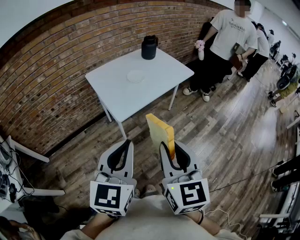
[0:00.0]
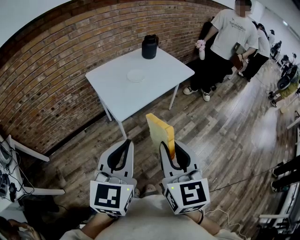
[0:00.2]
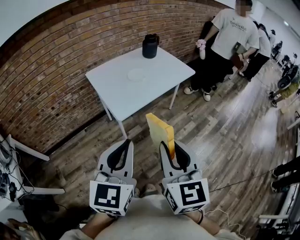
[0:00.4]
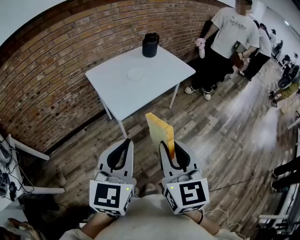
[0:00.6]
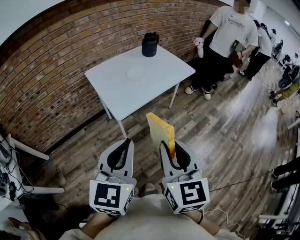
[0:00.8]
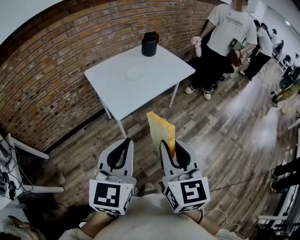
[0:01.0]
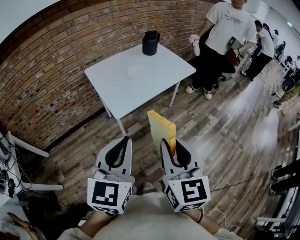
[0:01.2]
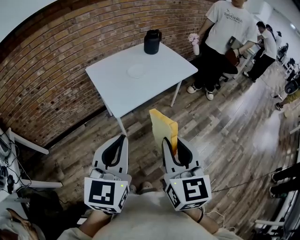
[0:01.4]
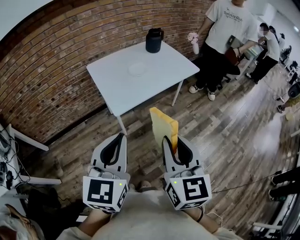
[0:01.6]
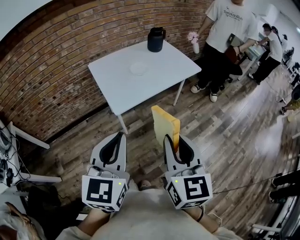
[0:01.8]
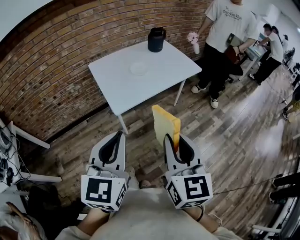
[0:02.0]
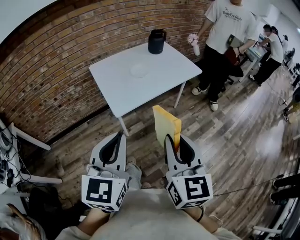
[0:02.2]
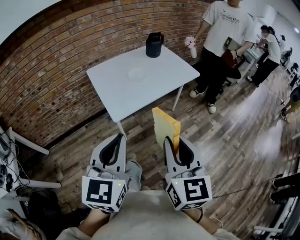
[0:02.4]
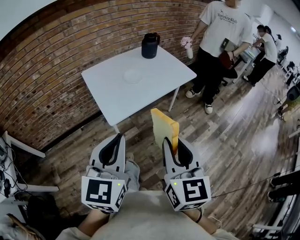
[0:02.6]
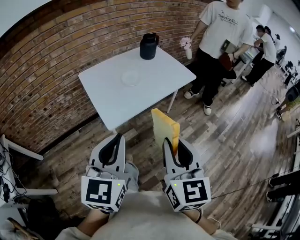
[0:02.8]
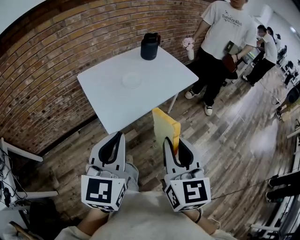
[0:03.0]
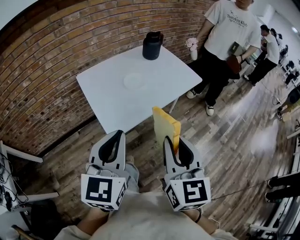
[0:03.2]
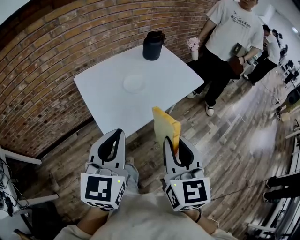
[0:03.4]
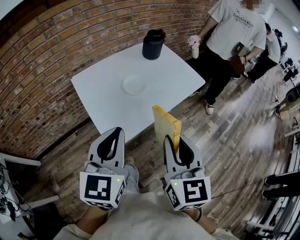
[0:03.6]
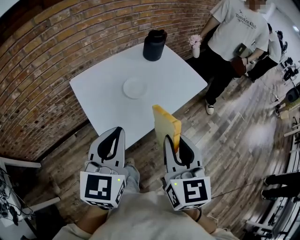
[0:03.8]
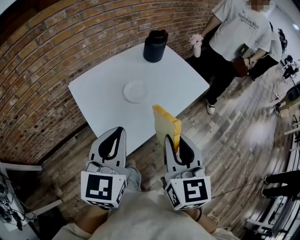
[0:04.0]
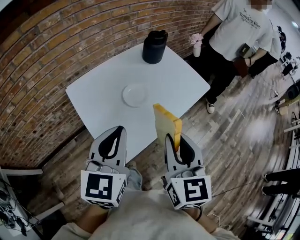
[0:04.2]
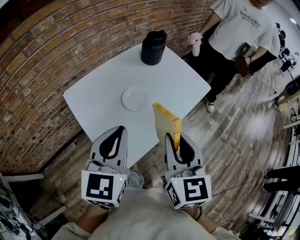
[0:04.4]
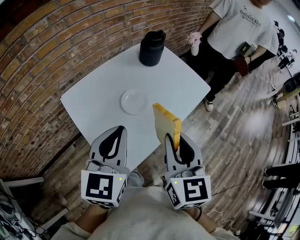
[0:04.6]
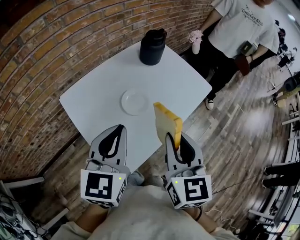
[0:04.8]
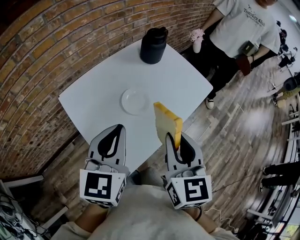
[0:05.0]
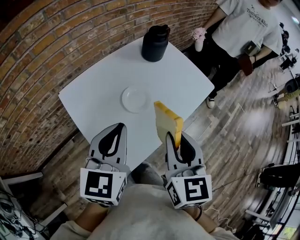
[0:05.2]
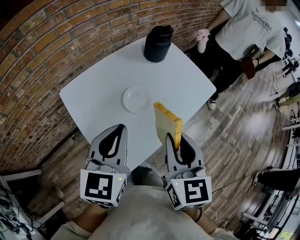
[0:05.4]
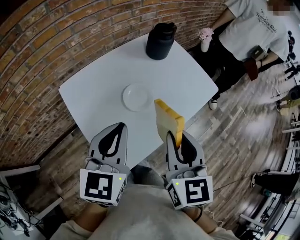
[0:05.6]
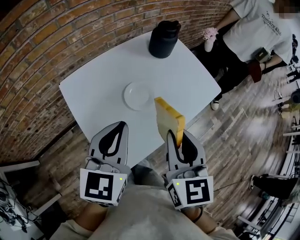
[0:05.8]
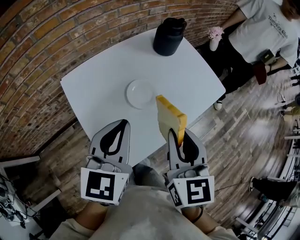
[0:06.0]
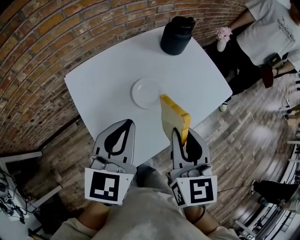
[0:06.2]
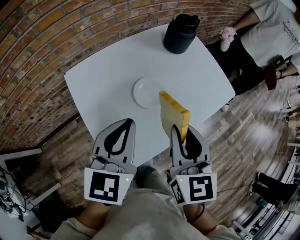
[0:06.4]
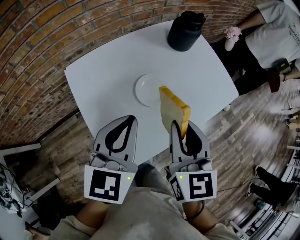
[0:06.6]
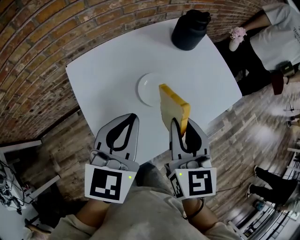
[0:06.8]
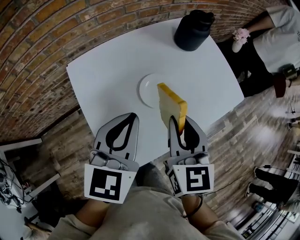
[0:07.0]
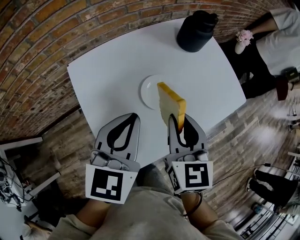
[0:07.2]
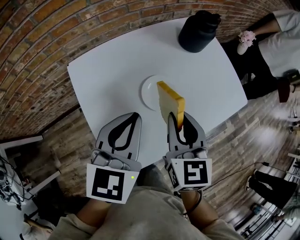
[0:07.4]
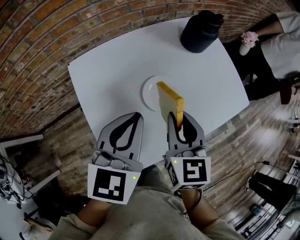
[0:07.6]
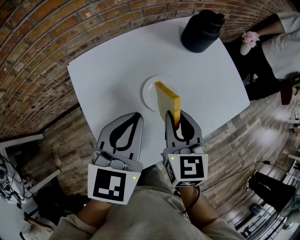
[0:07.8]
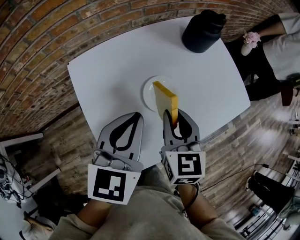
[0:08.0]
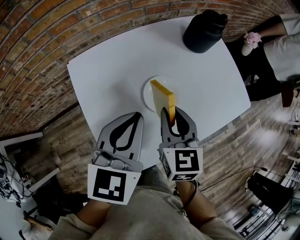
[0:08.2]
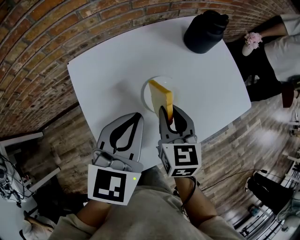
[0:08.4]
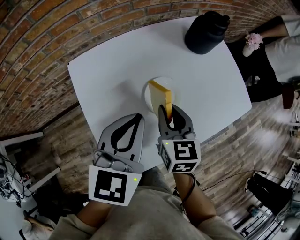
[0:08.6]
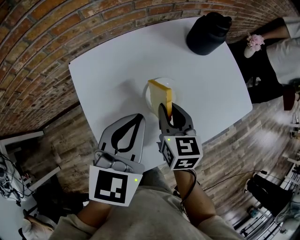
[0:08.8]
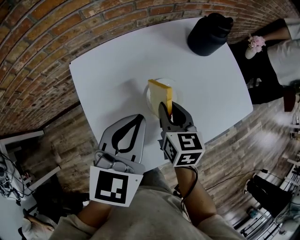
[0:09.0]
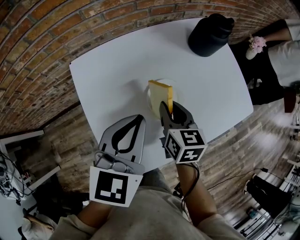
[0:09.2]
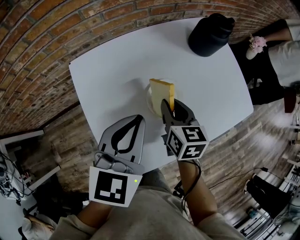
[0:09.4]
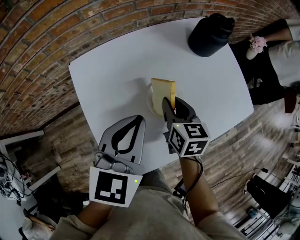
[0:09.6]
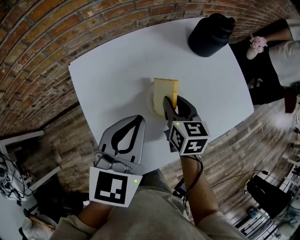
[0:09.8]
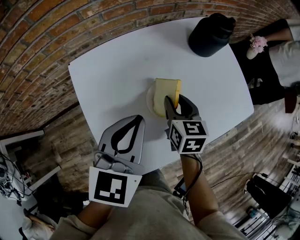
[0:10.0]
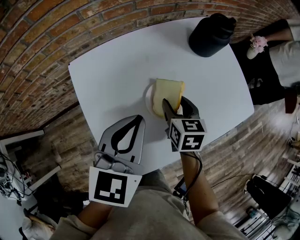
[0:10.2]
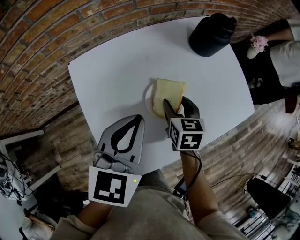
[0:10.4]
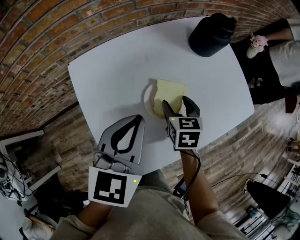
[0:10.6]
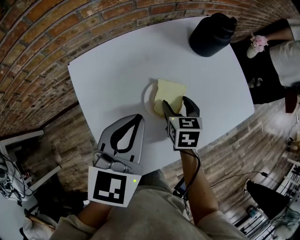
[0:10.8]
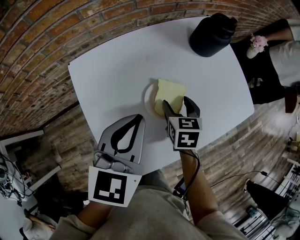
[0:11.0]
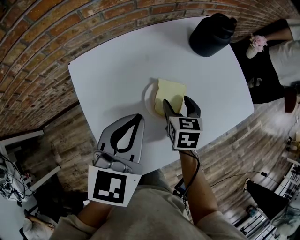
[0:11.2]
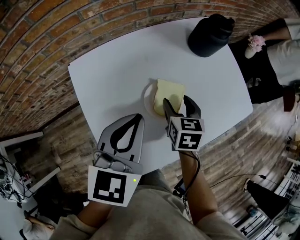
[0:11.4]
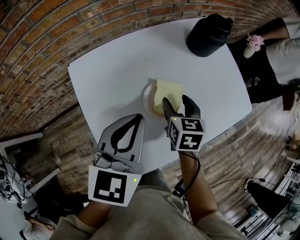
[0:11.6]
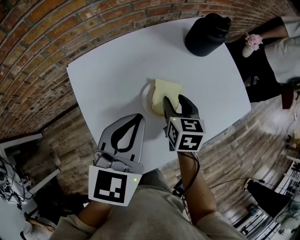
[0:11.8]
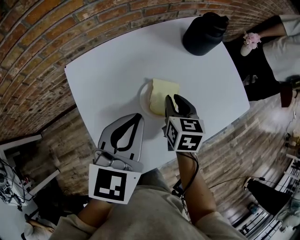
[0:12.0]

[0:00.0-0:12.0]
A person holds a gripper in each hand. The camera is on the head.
0:00.0 to 0:01.6: The right gripper ends up approximately 5 cm from where it was.
0:01.6 to 0:03.0: The two grippers go some 10 cm forward.
0:03.0 to 0:04.4: Both grippers travel together forward, about 25 cm.
0:04.4 to 0:06.0: The two grippers go about 5 cm forward.
0:06.0 to 0:07.6: The left gripper is displaced forward by approximately 5 cm. Meanwhile the right gripper goes some 15 cm forward and downward.
0:07.6 to 0:09.0: The right gripper heads downward and forward, covering about 10 cm.
0:09.0 to 0:10.4: The right gripper goes about 5 cm downward, and opens its fingers.
0:10.4 to 0:12.0: The right gripper closes.

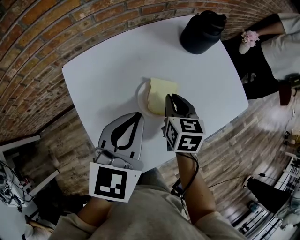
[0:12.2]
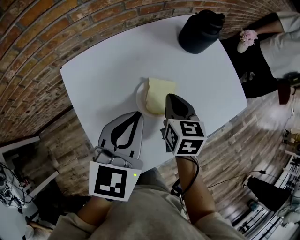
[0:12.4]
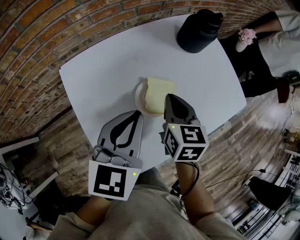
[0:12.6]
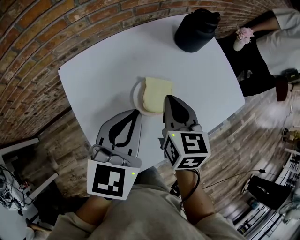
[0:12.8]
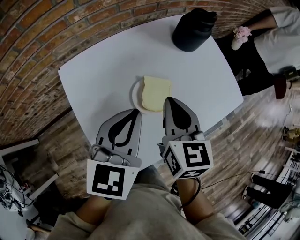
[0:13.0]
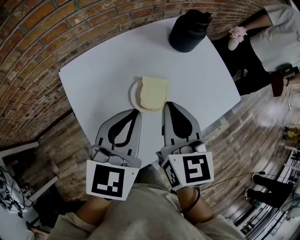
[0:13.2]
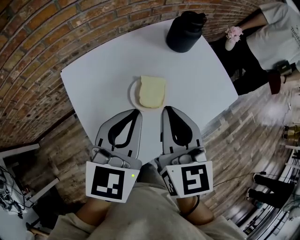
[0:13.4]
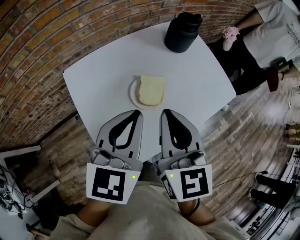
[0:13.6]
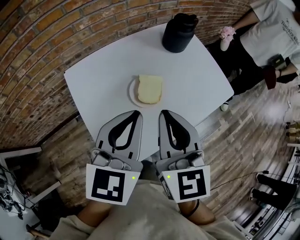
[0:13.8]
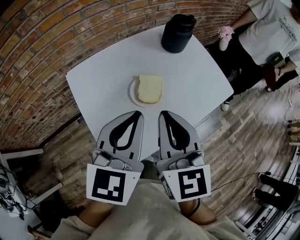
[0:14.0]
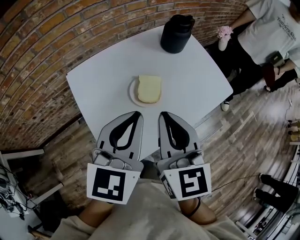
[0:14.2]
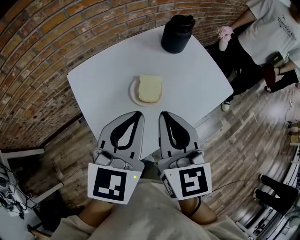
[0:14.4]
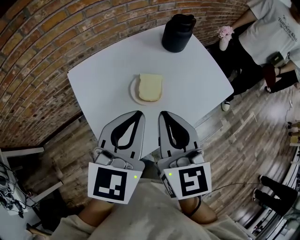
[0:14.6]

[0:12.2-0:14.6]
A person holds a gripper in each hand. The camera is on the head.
0:12.2 to 0:13.4: The right gripper moves upward and backward, approximately 20 cm, and rotates approximately 20 degrees. Meanwhile the left gripper moves roughly 5 cm.
0:13.4 to 0:14.6: Both grippers move backward, some 5 cm.

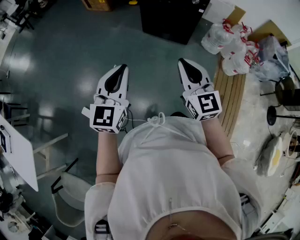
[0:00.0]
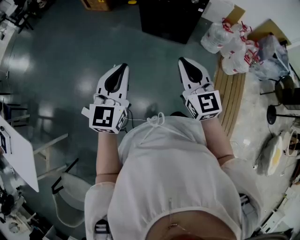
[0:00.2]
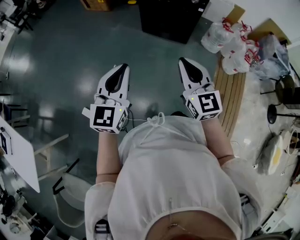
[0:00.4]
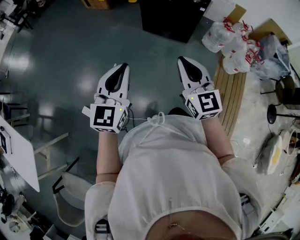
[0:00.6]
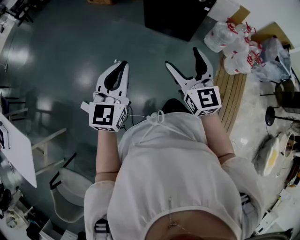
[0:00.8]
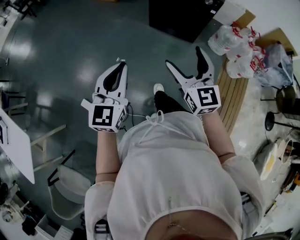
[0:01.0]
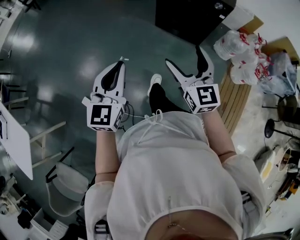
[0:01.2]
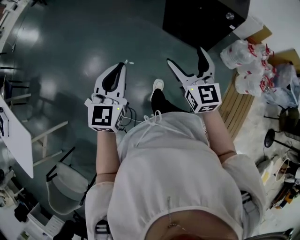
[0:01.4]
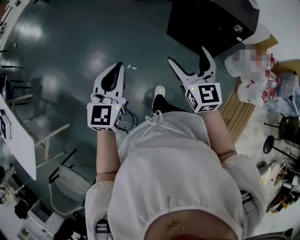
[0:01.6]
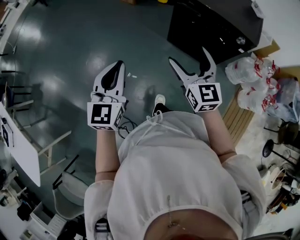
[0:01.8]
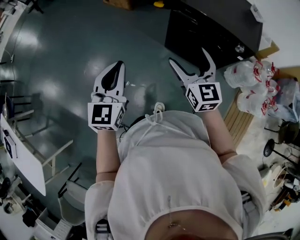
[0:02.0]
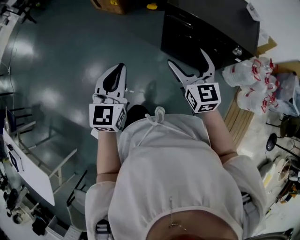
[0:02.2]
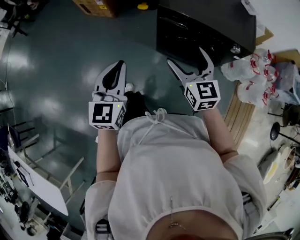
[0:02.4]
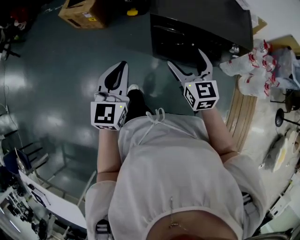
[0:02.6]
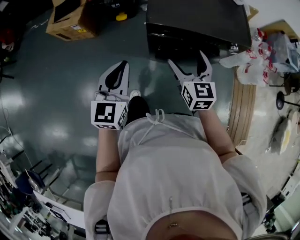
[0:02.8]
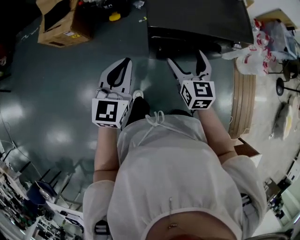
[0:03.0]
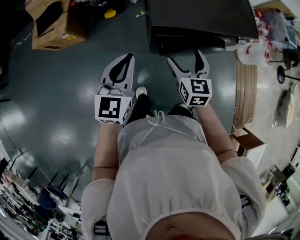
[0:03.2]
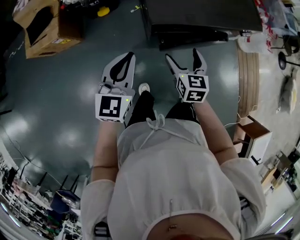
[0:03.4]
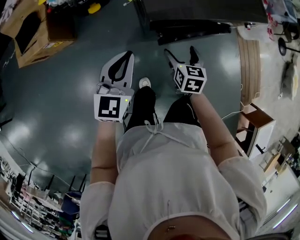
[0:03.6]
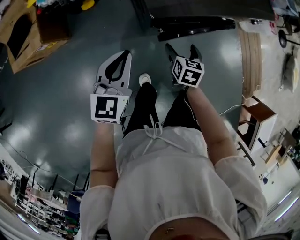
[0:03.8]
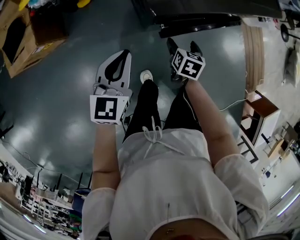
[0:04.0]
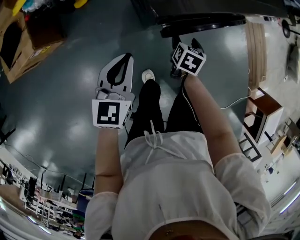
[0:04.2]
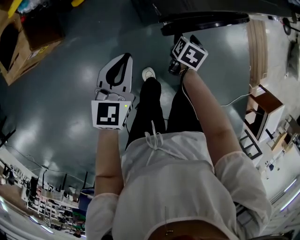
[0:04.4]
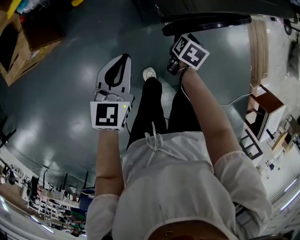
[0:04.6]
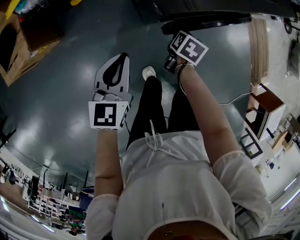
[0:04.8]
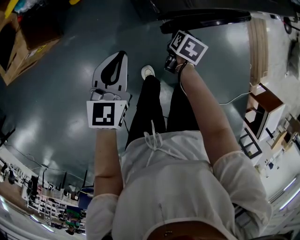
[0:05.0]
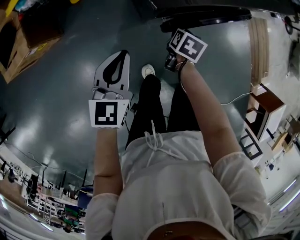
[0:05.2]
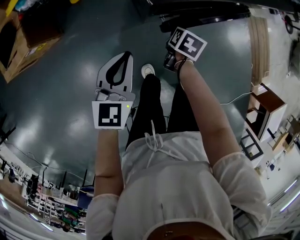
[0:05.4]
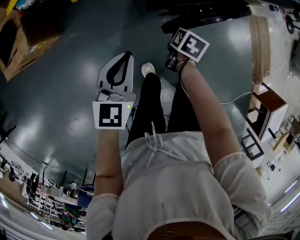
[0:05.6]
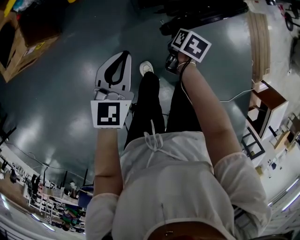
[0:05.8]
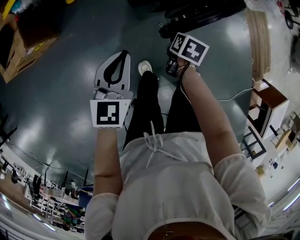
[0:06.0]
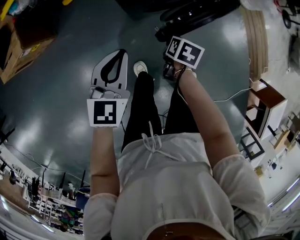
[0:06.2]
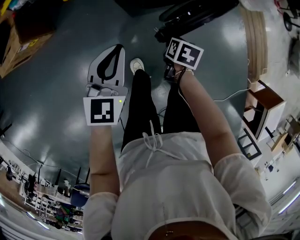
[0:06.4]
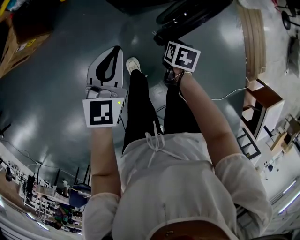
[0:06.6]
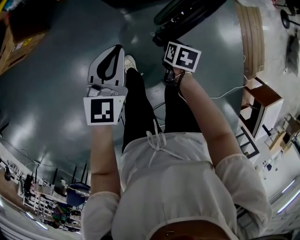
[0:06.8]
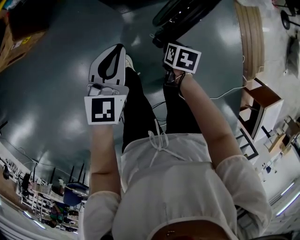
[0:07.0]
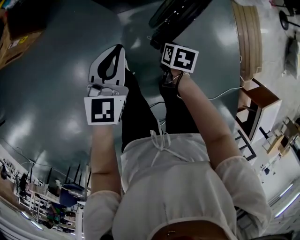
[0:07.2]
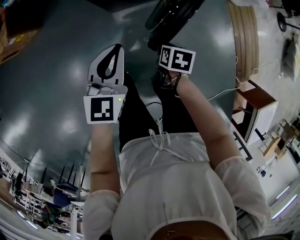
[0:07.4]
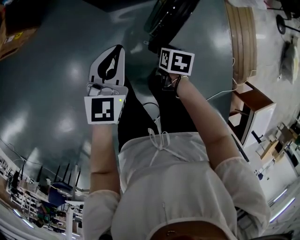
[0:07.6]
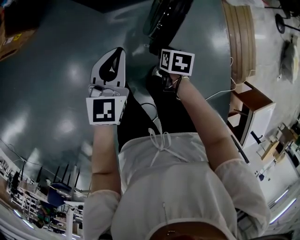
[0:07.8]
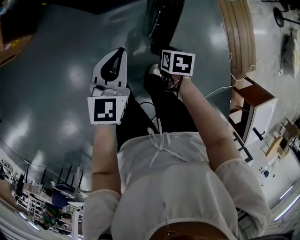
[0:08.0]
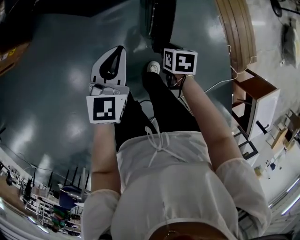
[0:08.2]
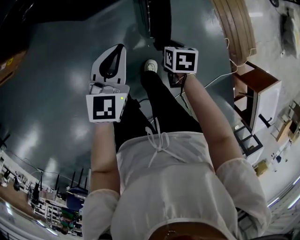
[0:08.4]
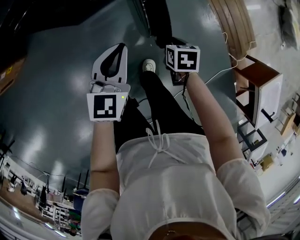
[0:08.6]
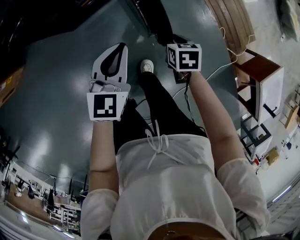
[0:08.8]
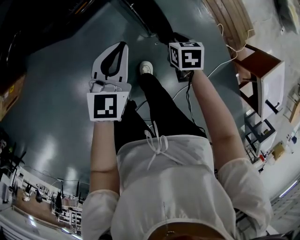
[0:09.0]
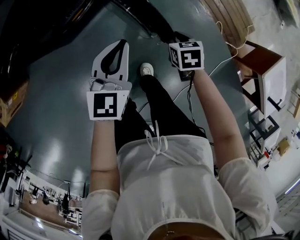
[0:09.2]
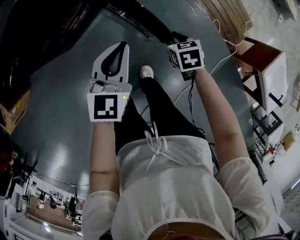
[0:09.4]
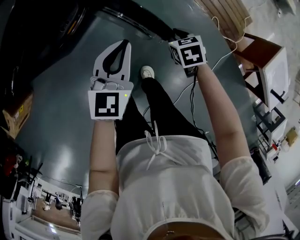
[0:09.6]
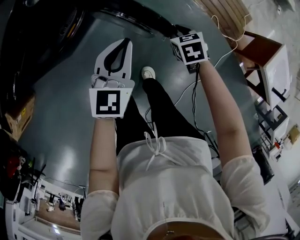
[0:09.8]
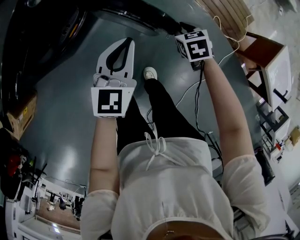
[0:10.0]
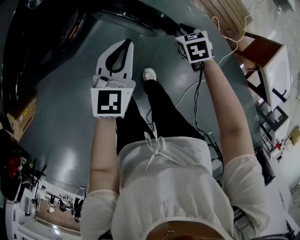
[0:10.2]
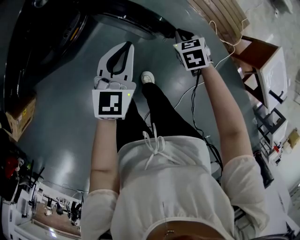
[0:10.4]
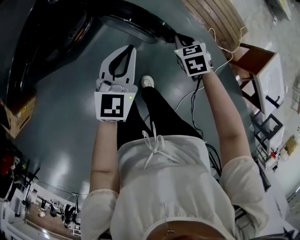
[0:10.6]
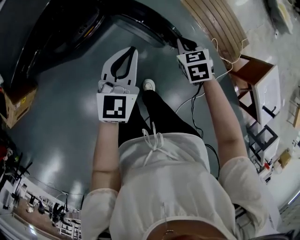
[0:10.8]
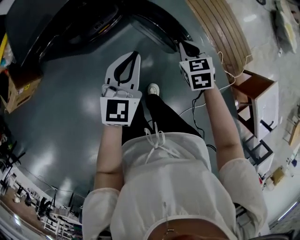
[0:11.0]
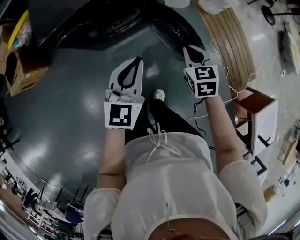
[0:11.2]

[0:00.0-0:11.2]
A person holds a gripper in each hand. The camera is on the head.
0:00.0 to 0:01.6: The left gripper goes some 30 cm forward and to the left; the right gripper goes approximately 30 cm forward, and opens its fingers.
0:01.6 to 0:03.2: The pair of grippers is taken about 60 cm. The left gripper changes its angle by approximately 40 degrees; the right gripper turns by approximately 50 degrees.
0:03.2 to 0:04.8: The two grippers go approximately 30 cm downward. The left gripper swivels about 20 degrees, while the right gripper tilts its fingers some 40 degrees downward, and closes up.
0:04.8 to 0:06.4: The right gripper heads to the right and backward, covering some 15 cm. The left gripper heads to the right, covering some 10 cm.
0:06.4 to 0:08.0: The two grippers go roughly 30 cm to the right and backward.
0:08.0 to 0:09.6: The left gripper moves approximately 30 cm, and swivels roughly 30 degrees, while the right gripper moves approximately 30 cm.
0:09.6 to 0:11.2: The two grippers go about 25 cm upward and to the left. The right gripper turns by roughly 30 degrees, while the left gripper changes its angle by some 20 degrees.
